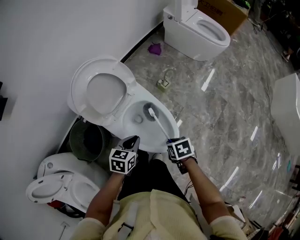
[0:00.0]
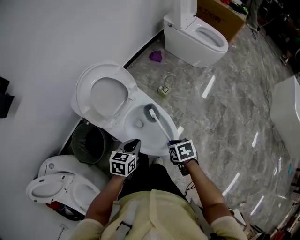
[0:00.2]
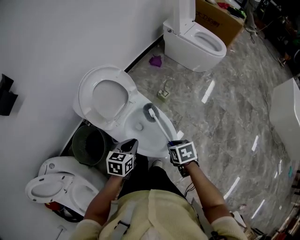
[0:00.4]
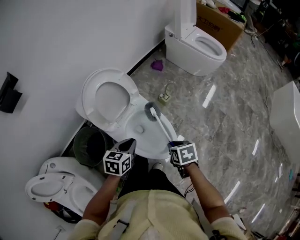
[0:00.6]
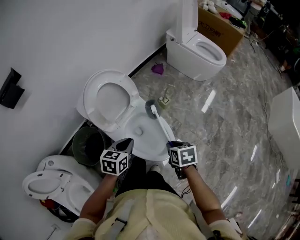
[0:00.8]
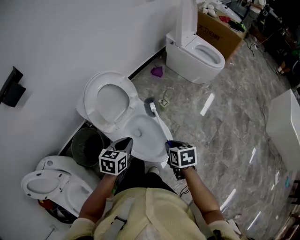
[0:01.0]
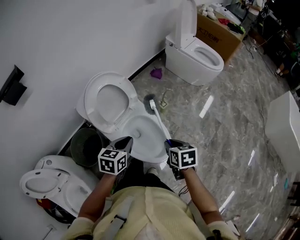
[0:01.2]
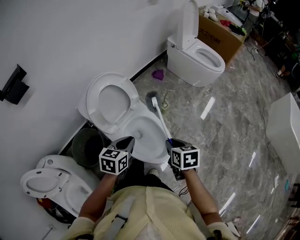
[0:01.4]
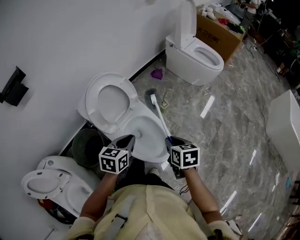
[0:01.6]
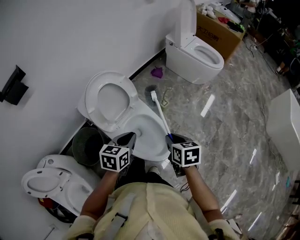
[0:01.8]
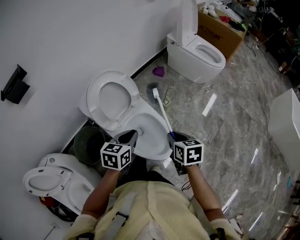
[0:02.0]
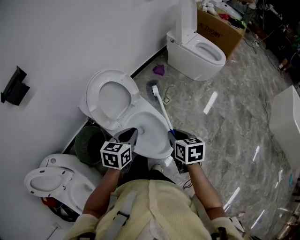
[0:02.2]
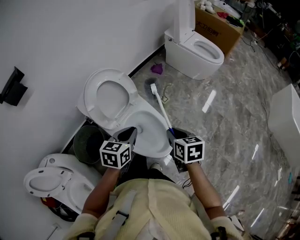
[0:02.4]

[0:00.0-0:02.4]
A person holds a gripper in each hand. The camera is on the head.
0:00.0 to 0:01.2: The left gripper moves upward, some 10 cm.

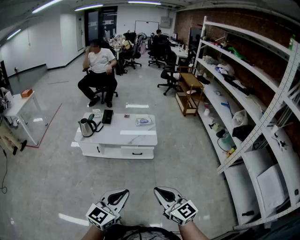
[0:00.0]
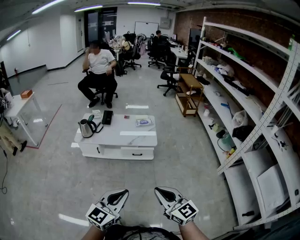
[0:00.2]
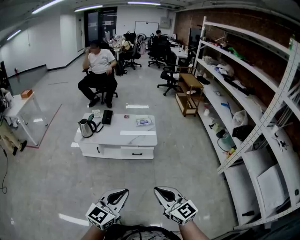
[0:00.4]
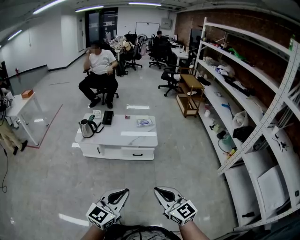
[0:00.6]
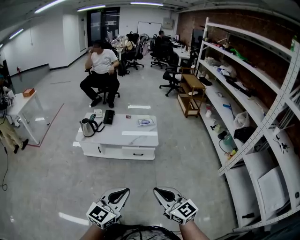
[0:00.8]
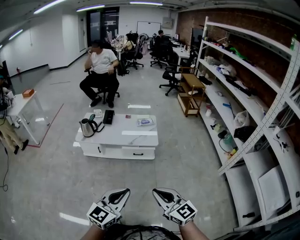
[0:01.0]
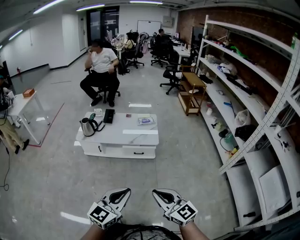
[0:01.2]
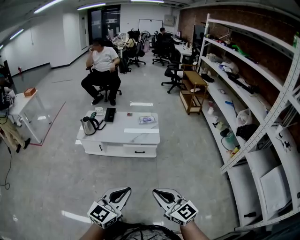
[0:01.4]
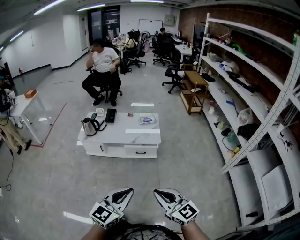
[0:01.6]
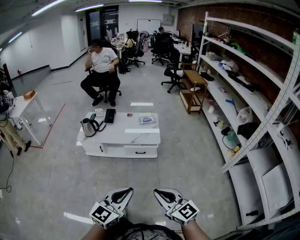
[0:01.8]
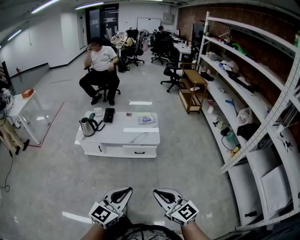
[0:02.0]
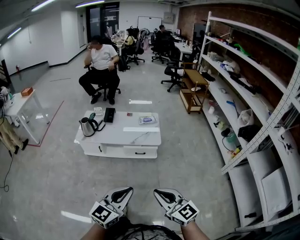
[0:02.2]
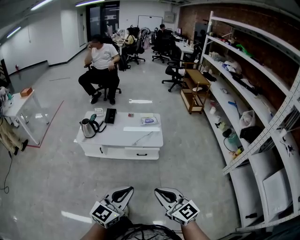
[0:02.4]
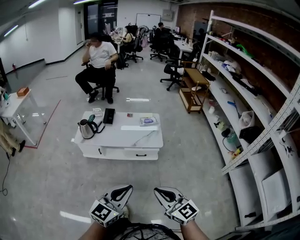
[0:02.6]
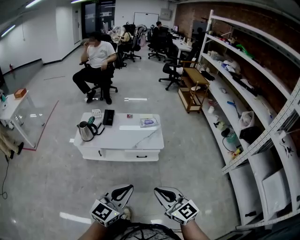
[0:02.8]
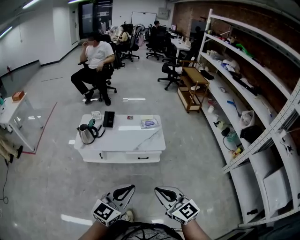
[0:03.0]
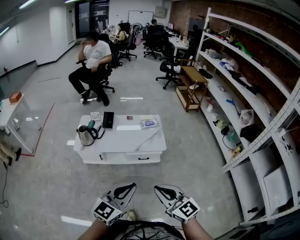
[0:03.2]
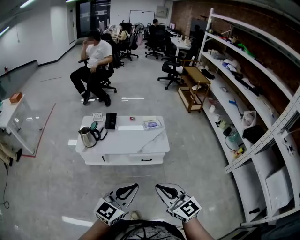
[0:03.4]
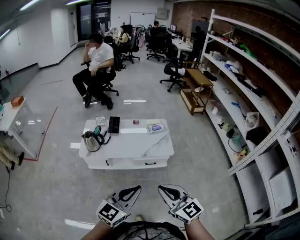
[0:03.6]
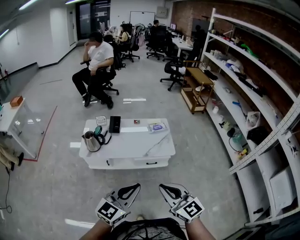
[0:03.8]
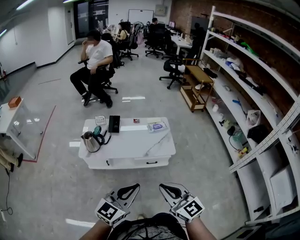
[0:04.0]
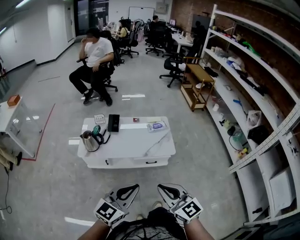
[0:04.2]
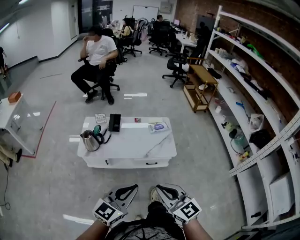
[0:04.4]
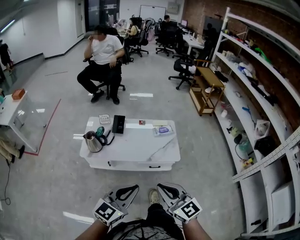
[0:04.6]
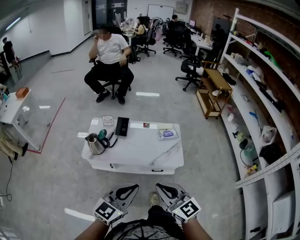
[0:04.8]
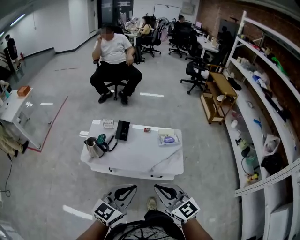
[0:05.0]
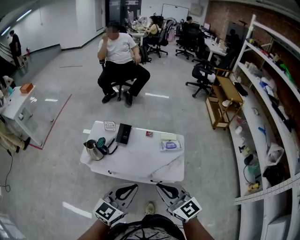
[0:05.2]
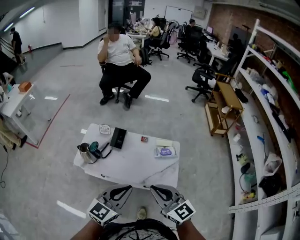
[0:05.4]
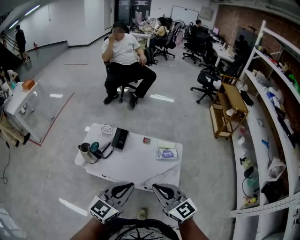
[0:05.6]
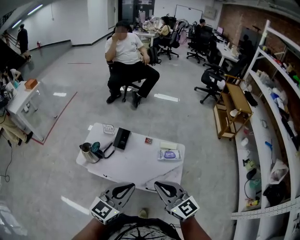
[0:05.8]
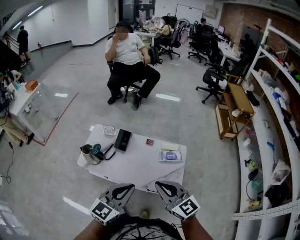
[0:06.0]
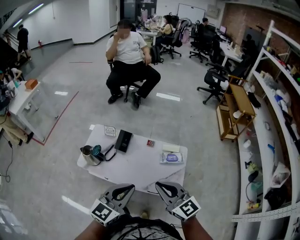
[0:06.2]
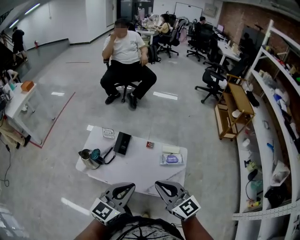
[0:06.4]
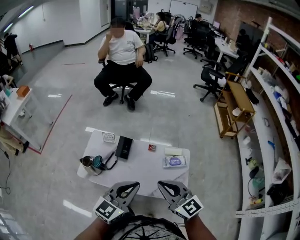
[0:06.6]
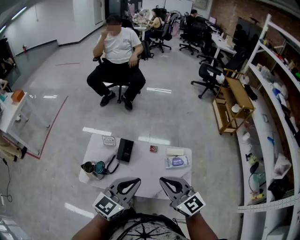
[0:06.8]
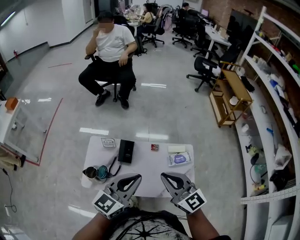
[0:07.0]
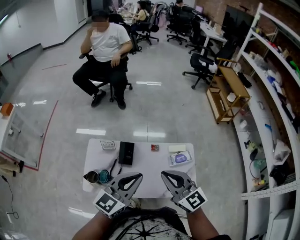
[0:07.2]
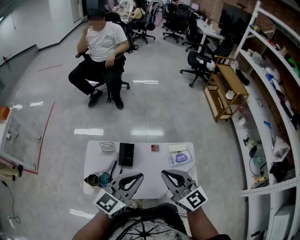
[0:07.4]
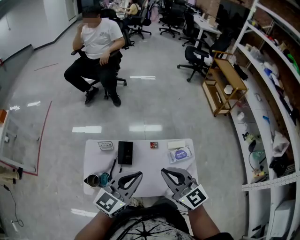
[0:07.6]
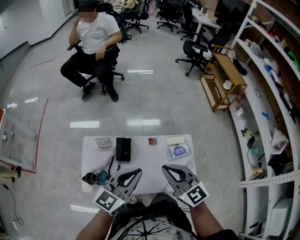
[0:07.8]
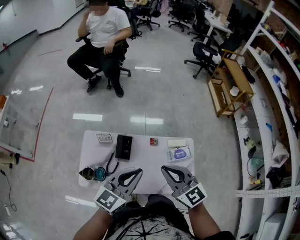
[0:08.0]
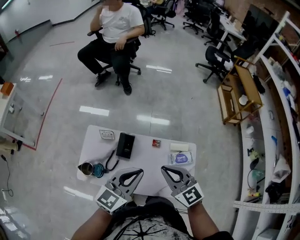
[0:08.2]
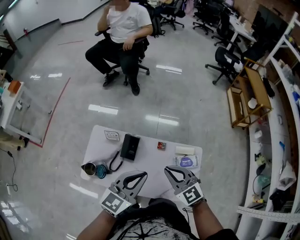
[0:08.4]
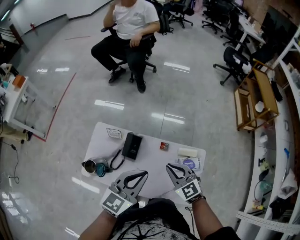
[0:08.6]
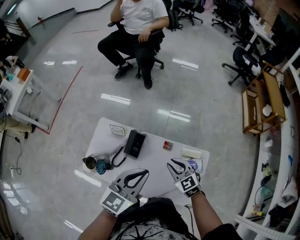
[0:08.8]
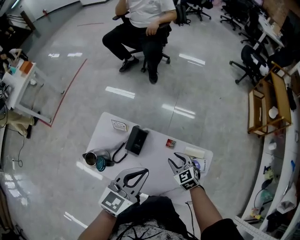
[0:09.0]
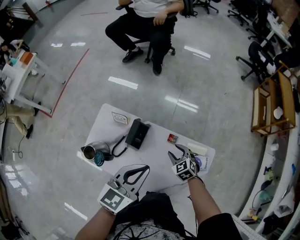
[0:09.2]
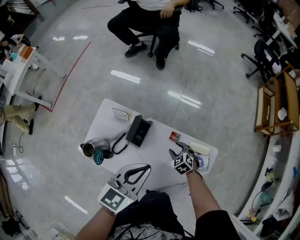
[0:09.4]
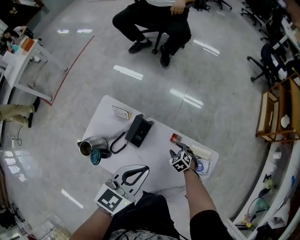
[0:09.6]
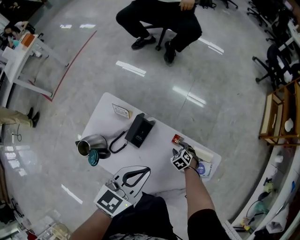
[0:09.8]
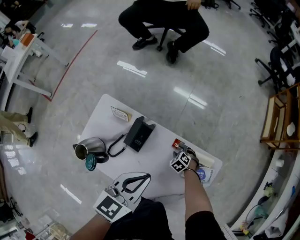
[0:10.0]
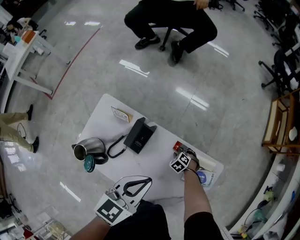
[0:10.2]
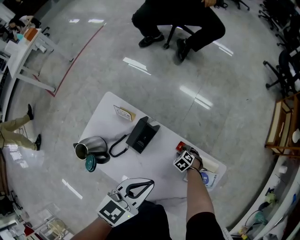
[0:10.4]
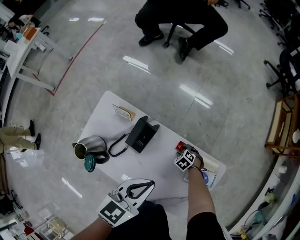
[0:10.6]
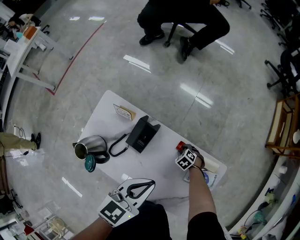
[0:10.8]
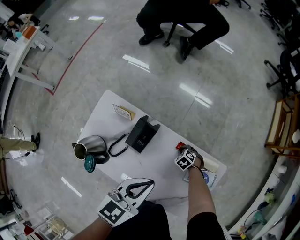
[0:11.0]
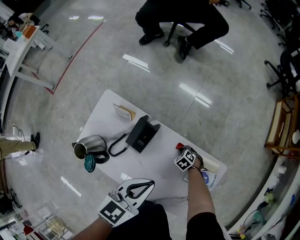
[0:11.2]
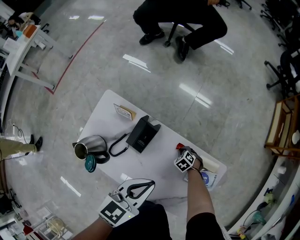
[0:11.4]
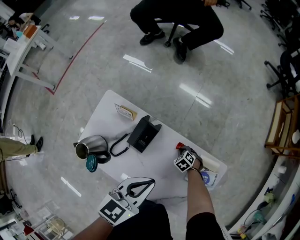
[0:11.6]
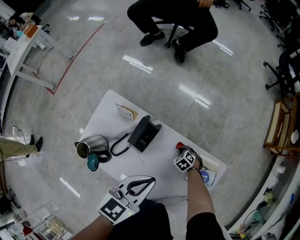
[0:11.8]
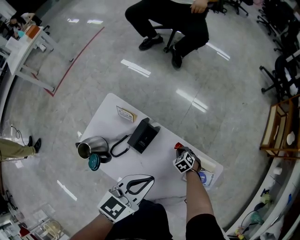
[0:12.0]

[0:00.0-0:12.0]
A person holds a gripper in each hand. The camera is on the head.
0:00.0 to 0:01.6: The grippers stay close to where they were, moving slightly.
0:01.6 to 0:03.0: The grippers both shift forward and to the left by roughly 20 cm.
0:03.0 to 0:04.4: Both grippers travel together forward and to the left, about 15 cm.
0:04.4 to 0:06.0: Both grippers move forward, about 30 cm.
0:06.0 to 0:07.6: The two grippers go approximately 25 cm forward and to the left.
0:07.6 to 0:09.0: The right gripper heads downward and forward, covering some 35 cm, tips its fingers downward by some 40 degrees, and opens up, while the left gripper heads forward, downward and to the right, covering about 15 cm, and rotates approximately 30 degrees.
0:09.0 to 0:10.4: The left gripper shifts roughly 15 cm downward, while the right gripper travels downward by about 35 cm, and points its fingers roughly 40 degrees further downward.
0:10.4 to 0:12.0: The right gripper shifts about 5 cm upward, and closes.

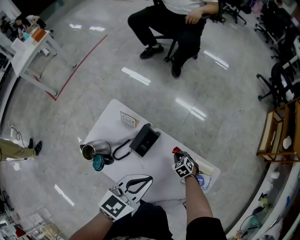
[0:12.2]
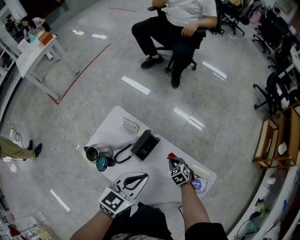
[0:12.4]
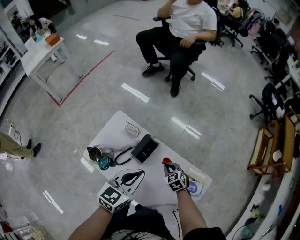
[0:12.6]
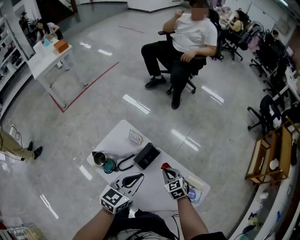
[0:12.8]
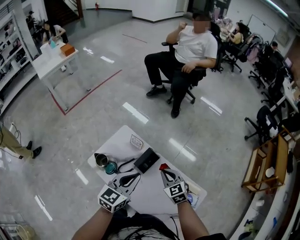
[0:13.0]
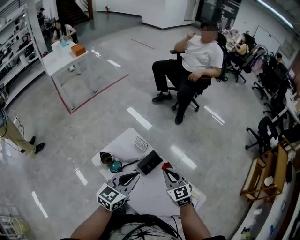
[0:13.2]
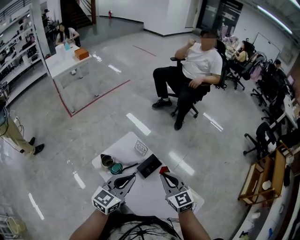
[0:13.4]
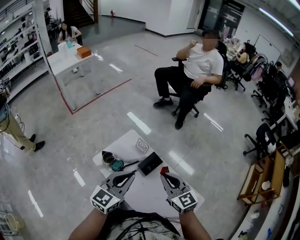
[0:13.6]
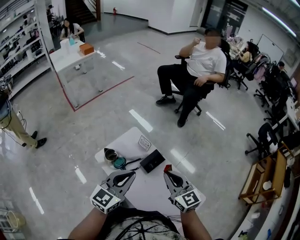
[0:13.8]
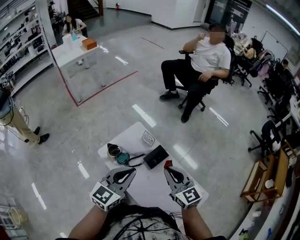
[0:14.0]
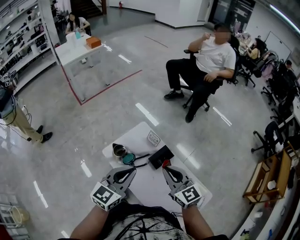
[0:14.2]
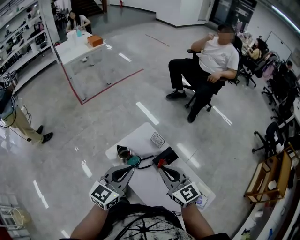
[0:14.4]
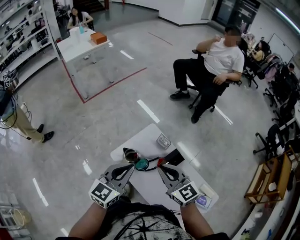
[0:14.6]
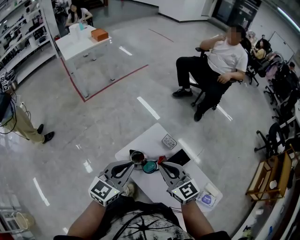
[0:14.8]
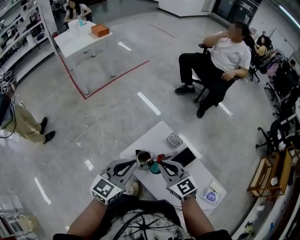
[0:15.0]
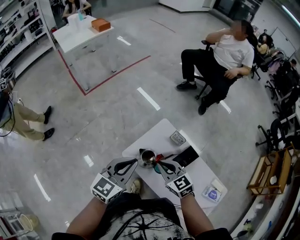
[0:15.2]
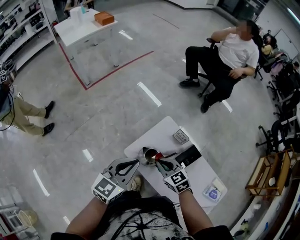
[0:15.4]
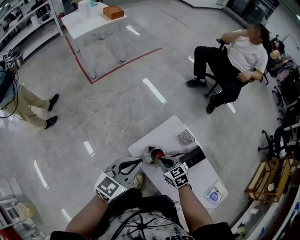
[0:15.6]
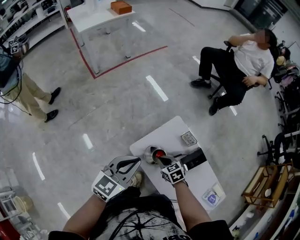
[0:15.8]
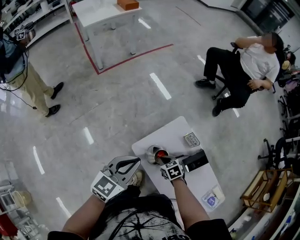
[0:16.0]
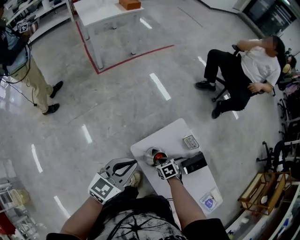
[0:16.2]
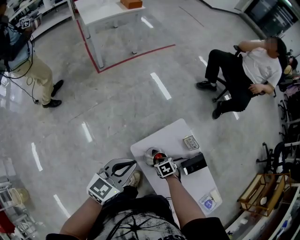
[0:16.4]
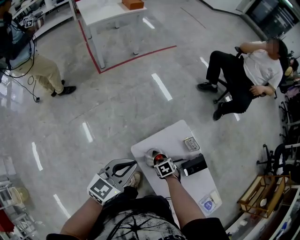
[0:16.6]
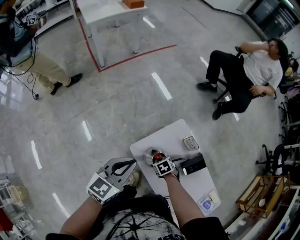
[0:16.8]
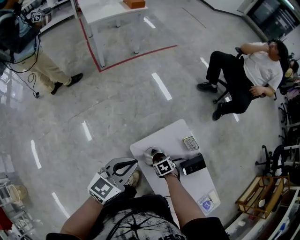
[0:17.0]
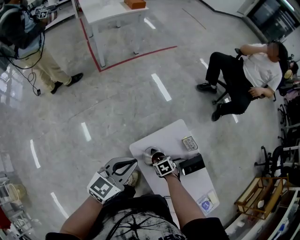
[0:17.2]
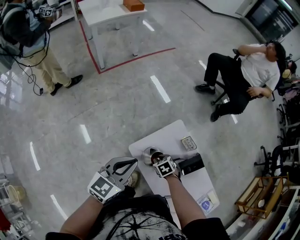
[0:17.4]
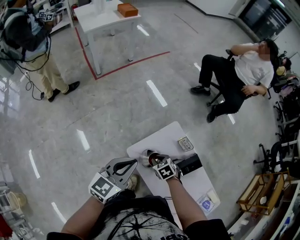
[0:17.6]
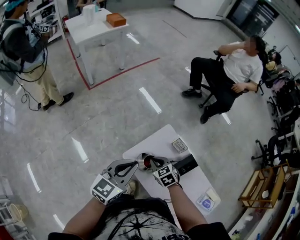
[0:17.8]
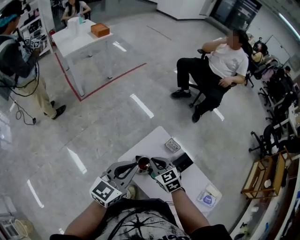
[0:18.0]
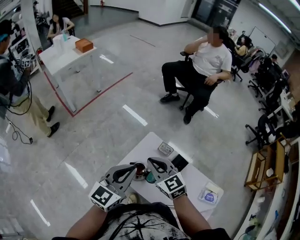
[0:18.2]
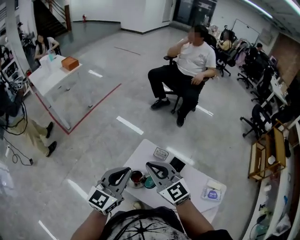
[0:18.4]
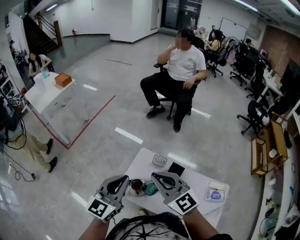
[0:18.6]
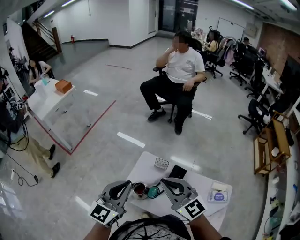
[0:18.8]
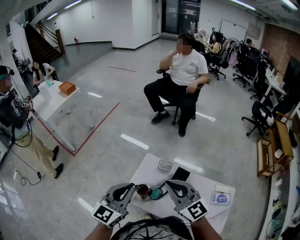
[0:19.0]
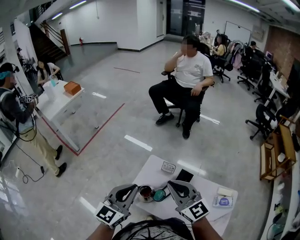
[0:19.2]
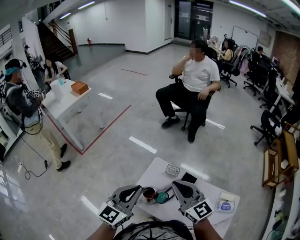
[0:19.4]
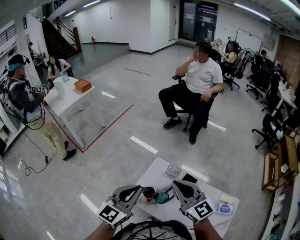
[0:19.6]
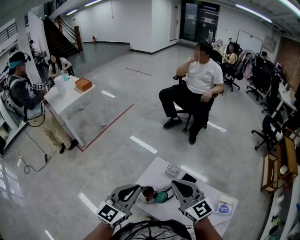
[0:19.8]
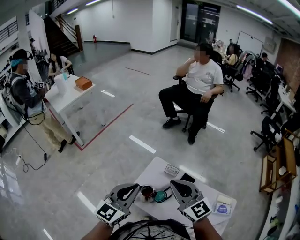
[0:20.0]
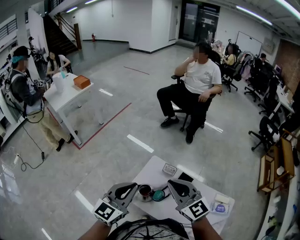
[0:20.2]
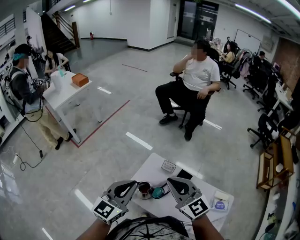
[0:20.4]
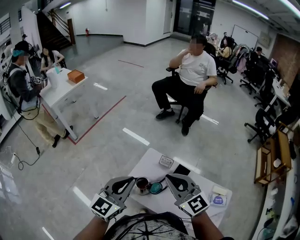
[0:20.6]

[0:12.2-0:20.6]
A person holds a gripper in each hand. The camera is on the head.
0:12.2 to 0:13.6: The right gripper travels upward by approximately 50 cm, and tilts its fingers approximately 50 degrees upward. The left gripper heads upward, to the left and backward, covering roughly 20 cm, and turns by some 30 degrees.
0:13.6 to 0:15.0: The right gripper heads to the left, covering some 25 cm. Meanwhile the left gripper moves to the left and forward, approximately 25 cm.
0:15.0 to 0:16.4: The right gripper moves downward, some 30 cm, and tilts its fingers approximately 50 degrees downward. The left gripper moves to the left and downward, some 10 cm.
0:16.4 to 0:17.8: The right gripper goes approximately 15 cm upward, and turns by about 20 degrees, while the left gripper ends up about 5 cm from where it was.
0:17.8 to 0:19.2: The left gripper moves upward and to the right, roughly 15 cm. Meanwhile the right gripper is displaced upward and to the right by roughly 35 cm, and points its fingers about 50 degrees further upward.
0:19.2 to 0:20.6: There are only small adjustments of the grippers.

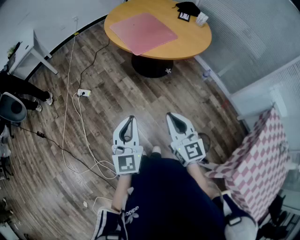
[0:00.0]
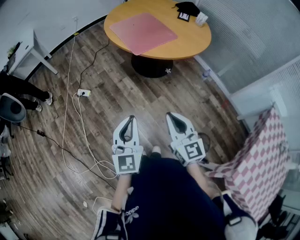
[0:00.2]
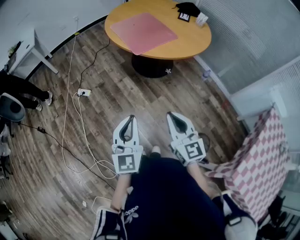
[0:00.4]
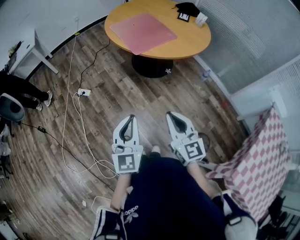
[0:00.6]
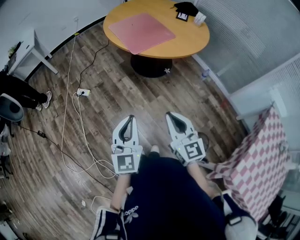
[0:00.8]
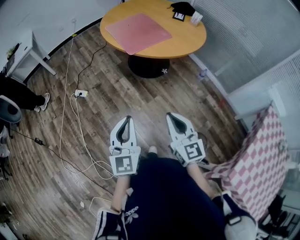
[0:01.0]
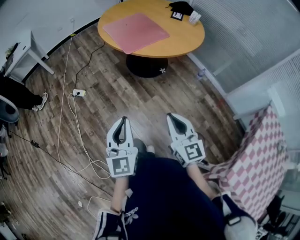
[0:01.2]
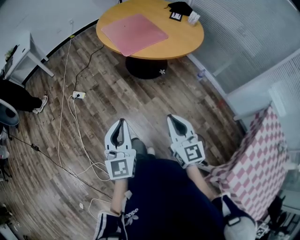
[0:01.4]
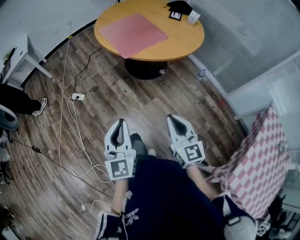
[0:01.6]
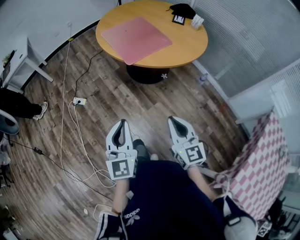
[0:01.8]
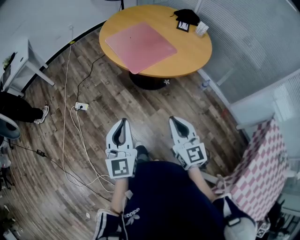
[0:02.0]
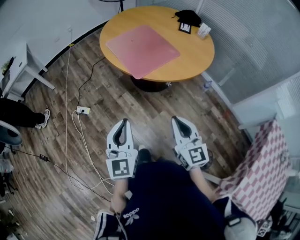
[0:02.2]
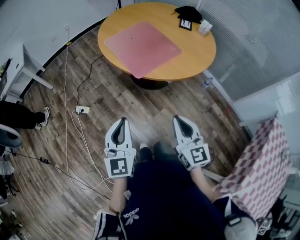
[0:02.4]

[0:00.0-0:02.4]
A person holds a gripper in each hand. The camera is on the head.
0:00.0 to 0:01.2: The right gripper goes roughly 5 cm to the right.
0:01.2 to 0:02.4: The grippers both shift forward by approximately 20 cm.
